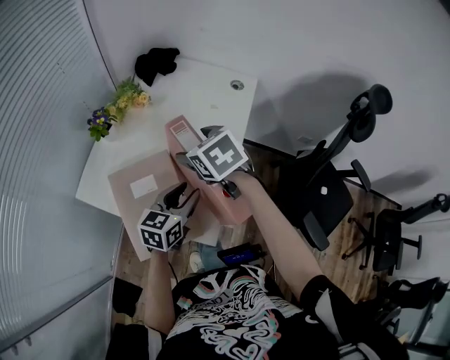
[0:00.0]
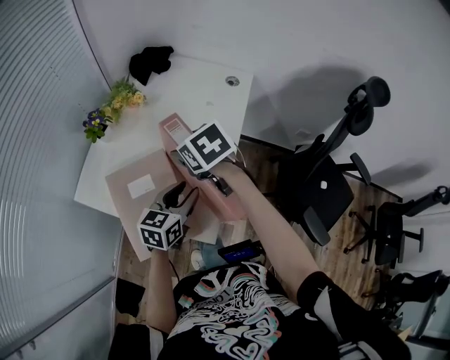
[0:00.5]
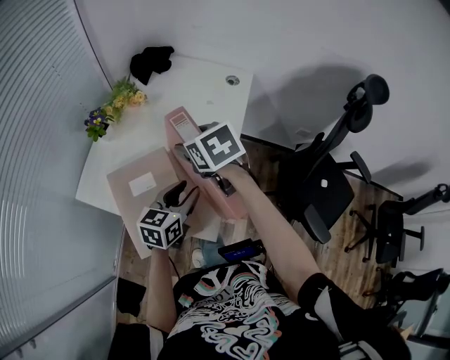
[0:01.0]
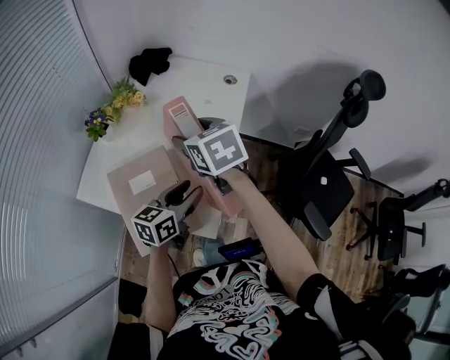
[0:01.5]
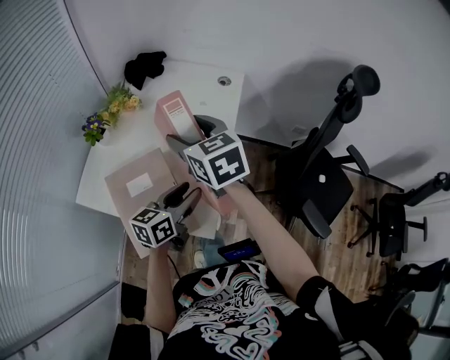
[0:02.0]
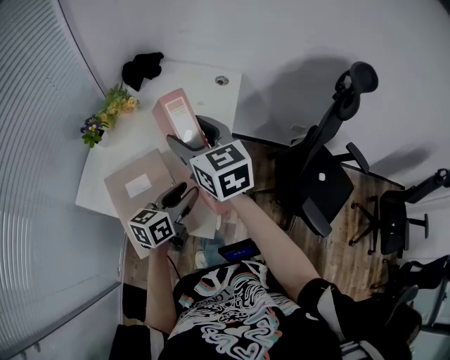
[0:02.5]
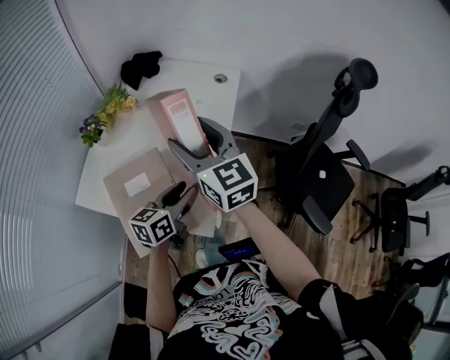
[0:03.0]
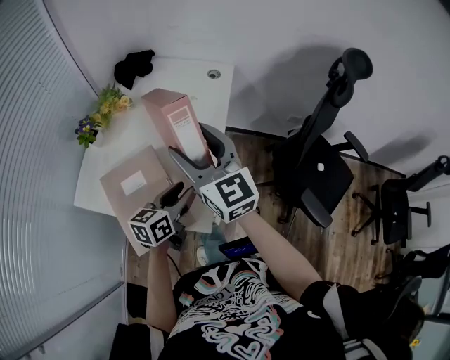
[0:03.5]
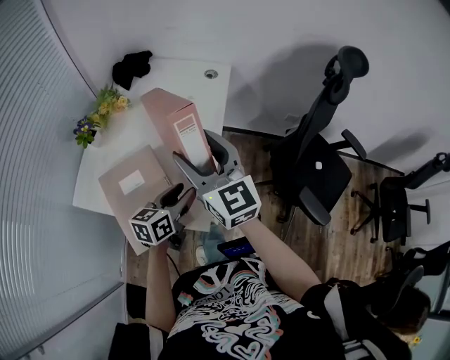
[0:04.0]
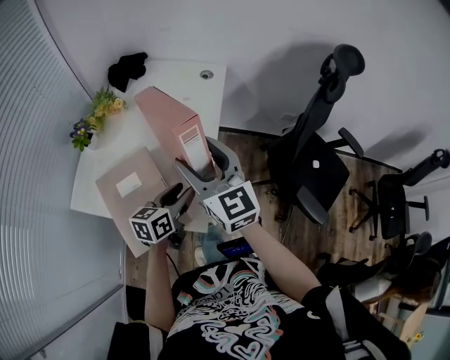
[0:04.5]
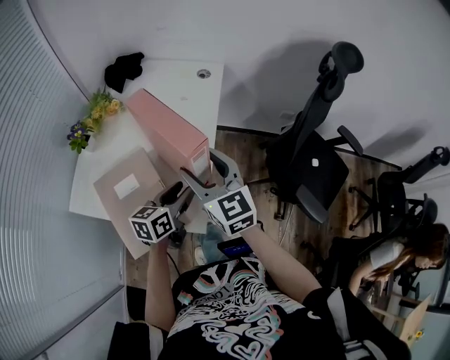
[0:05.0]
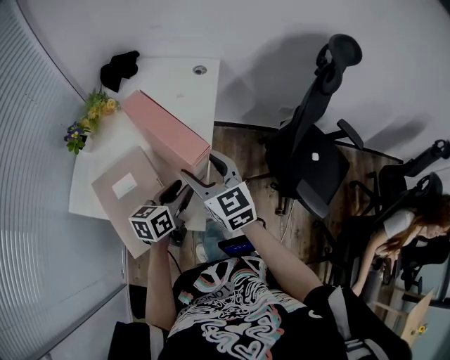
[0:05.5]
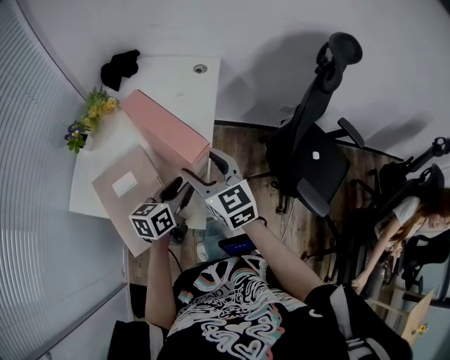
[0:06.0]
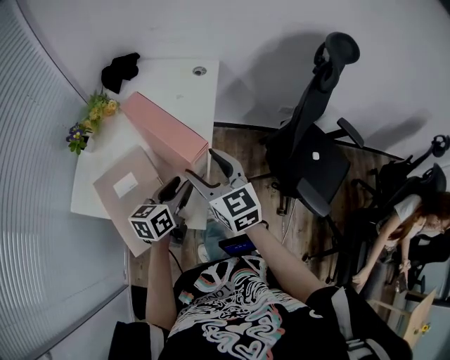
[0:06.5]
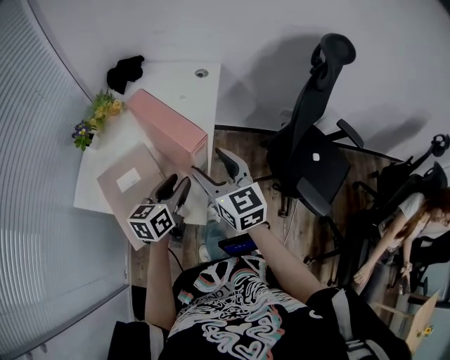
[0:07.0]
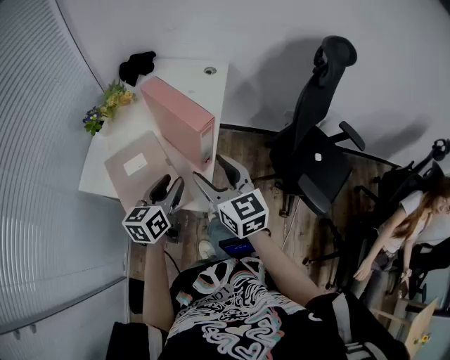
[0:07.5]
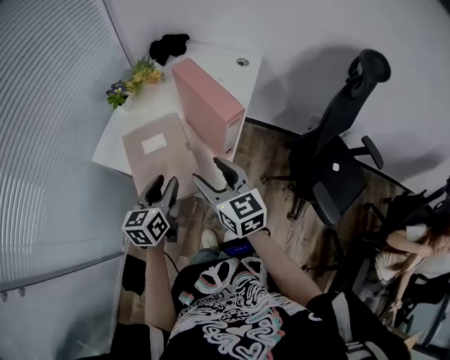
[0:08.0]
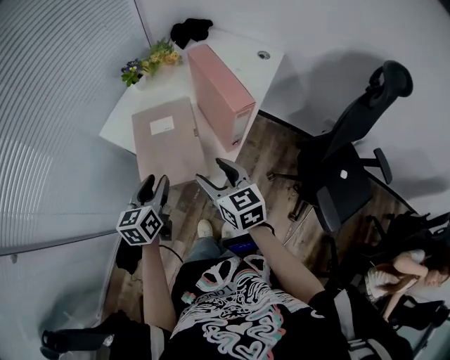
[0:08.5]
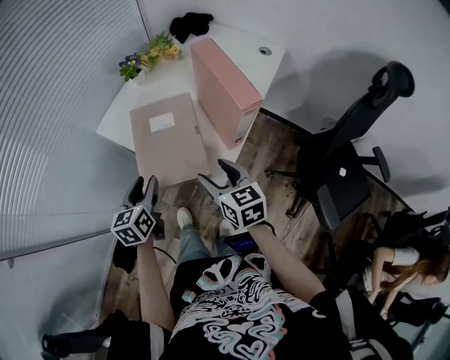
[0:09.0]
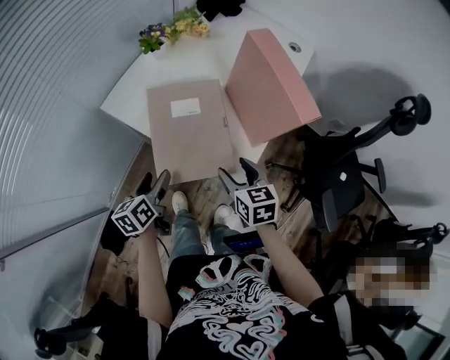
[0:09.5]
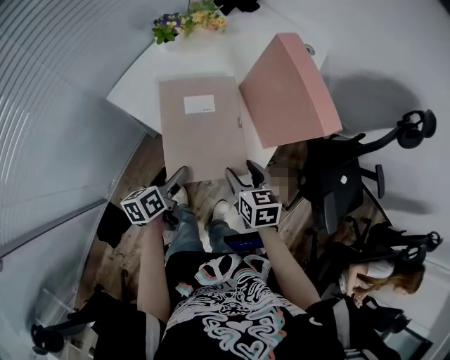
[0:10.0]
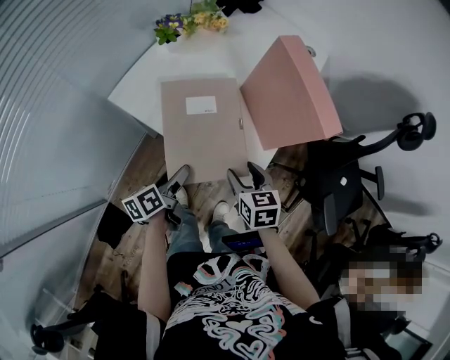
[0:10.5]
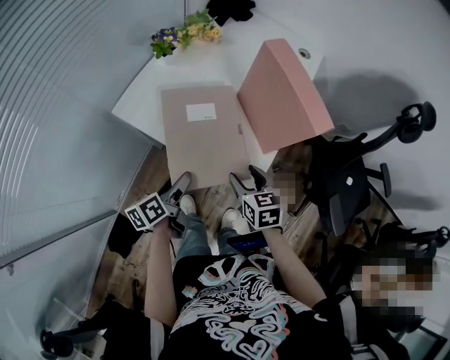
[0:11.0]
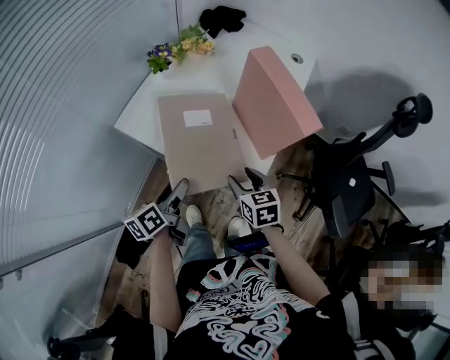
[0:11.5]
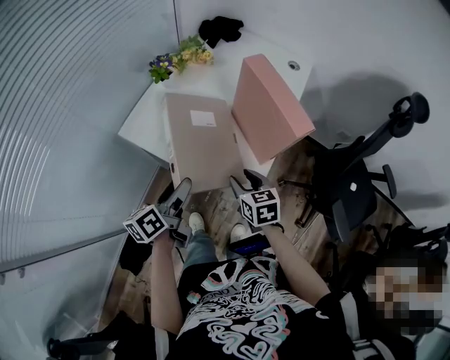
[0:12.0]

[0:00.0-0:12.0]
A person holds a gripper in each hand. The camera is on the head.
0:00.0 to 0:02.0: The right gripper moves upward, about 5 cm, and rotates about 20 degrees.
0:02.0 to 0:04.0: The right gripper heads backward and to the right, covering approximately 10 cm, and rotates approximately 30 degrees.
0:04.0 to 0:06.0: The right gripper moves downward, about 10 cm.
0:06.0 to 0:08.0: The right gripper heads backward, covering roughly 10 cm, while the left gripper is displaced to the left and backward by roughly 15 cm, and rotates approximately 30 degrees.
0:08.0 to 0:10.0: The left gripper moves downward and to the left, about 20 cm, swivels approximately 40 degrees, and opens. The right gripper shifts about 15 cm downward, and swivels approximately 30 degrees.
0:10.0 to 0:12.0: The left gripper shifts roughly 10 cm upward.

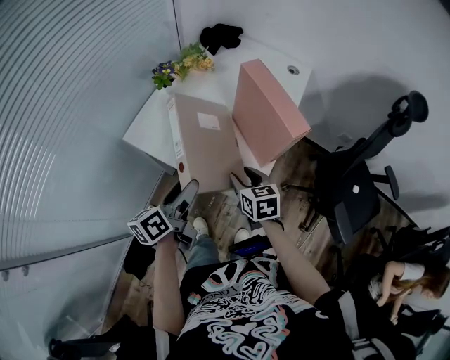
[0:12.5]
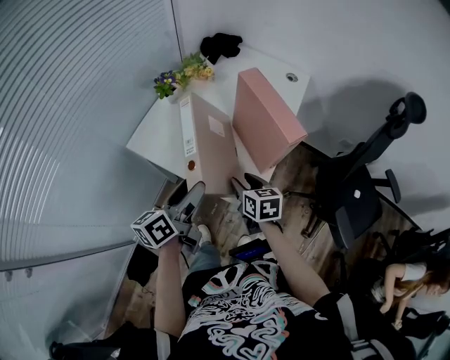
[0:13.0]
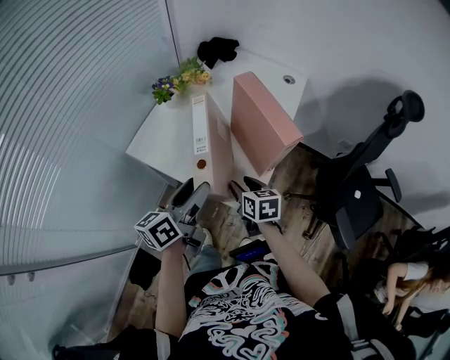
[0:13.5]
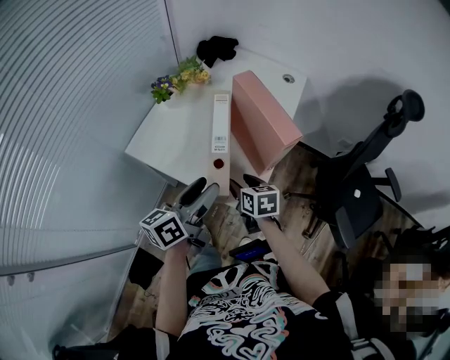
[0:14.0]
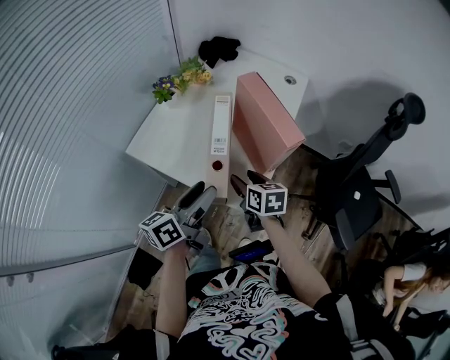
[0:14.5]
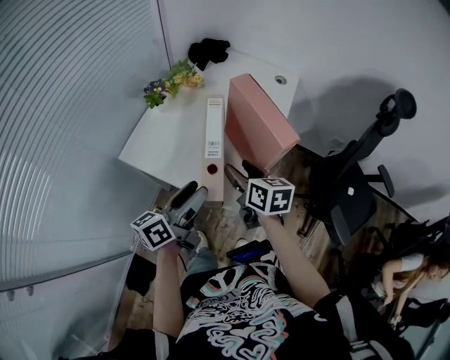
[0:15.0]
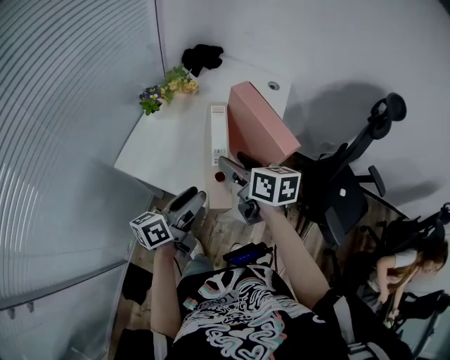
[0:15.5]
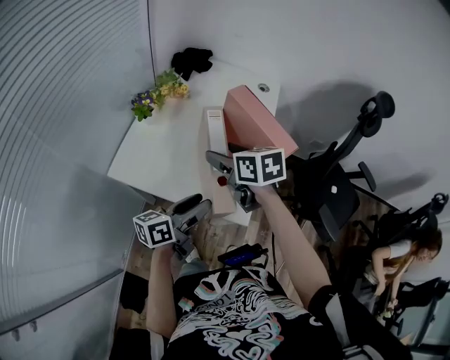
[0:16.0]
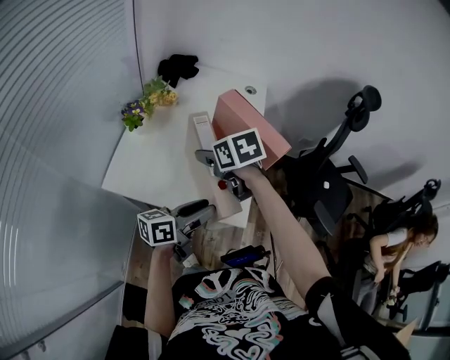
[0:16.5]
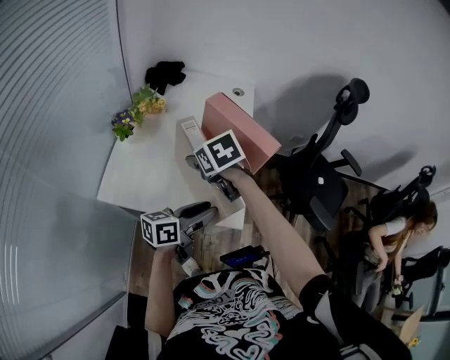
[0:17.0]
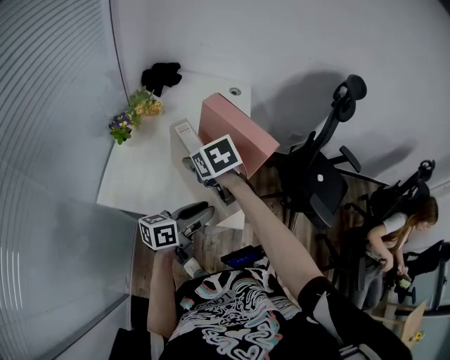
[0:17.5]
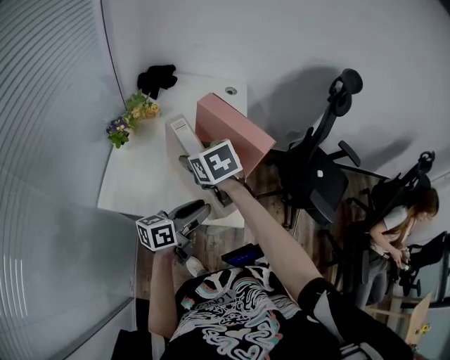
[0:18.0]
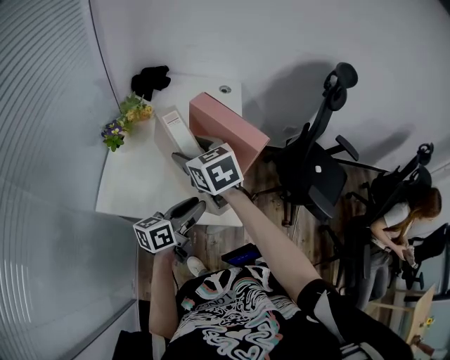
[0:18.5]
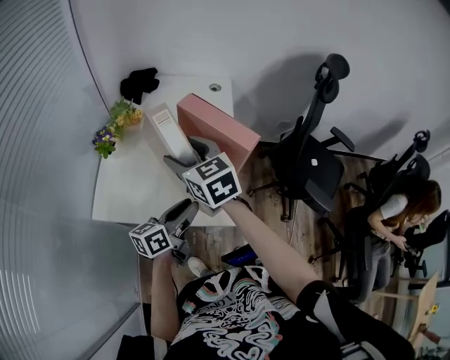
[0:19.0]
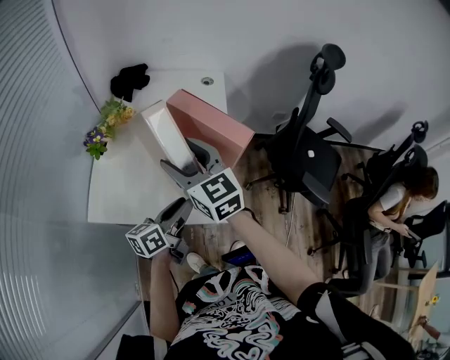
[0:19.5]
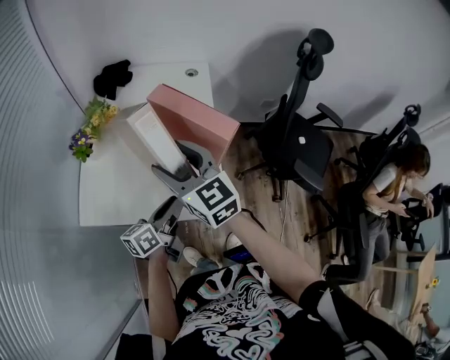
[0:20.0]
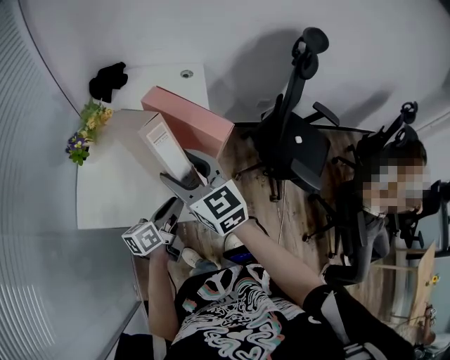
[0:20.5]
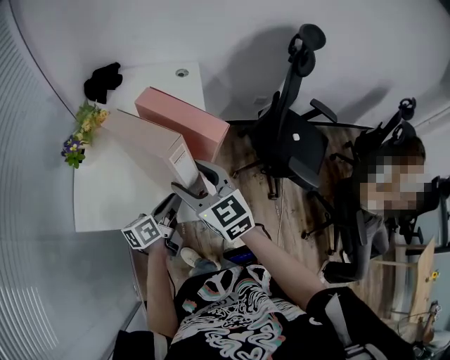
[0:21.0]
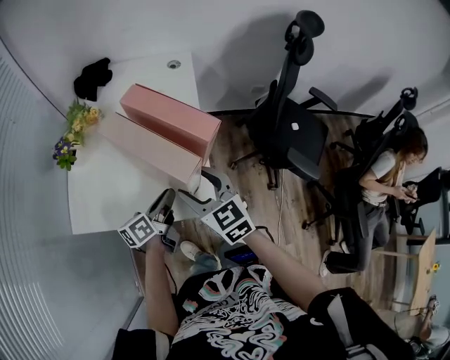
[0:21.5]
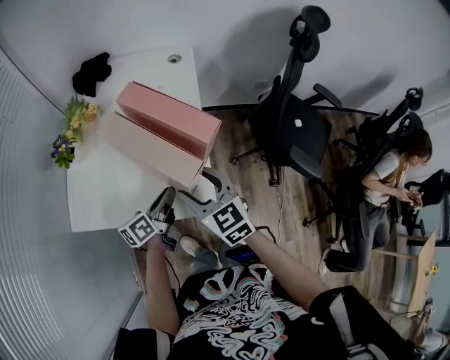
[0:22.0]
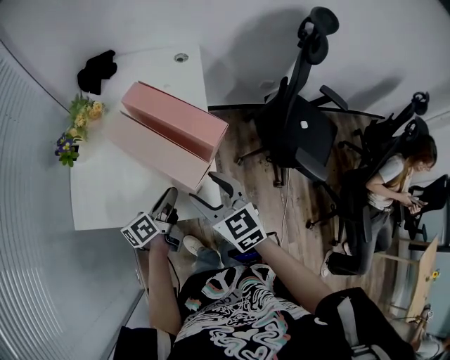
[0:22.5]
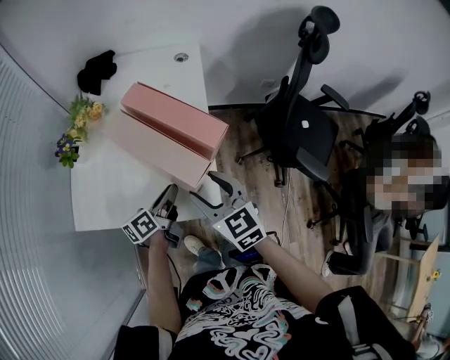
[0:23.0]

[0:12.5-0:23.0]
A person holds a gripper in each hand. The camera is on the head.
0:12.5 to 0:14.5: The left gripper is displaced to the right by about 5 cm.
0:14.5 to 0:16.5: The right gripper heads upward, forward and to the left, covering roughly 15 cm. Meanwhile the left gripper swivels about 30 degrees.
0:16.5 to 0:19.0: The right gripper shifts some 5 cm upward, and rotates about 30 degrees.
0:19.0 to 0:21.0: The right gripper travels to the right and backward by about 10 cm, while the left gripper travels downward by approximately 5 cm.
0:21.0 to 0:23.0: The right gripper is displaced downward and to the right by some 10 cm.

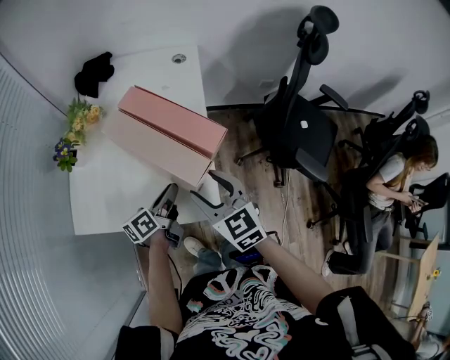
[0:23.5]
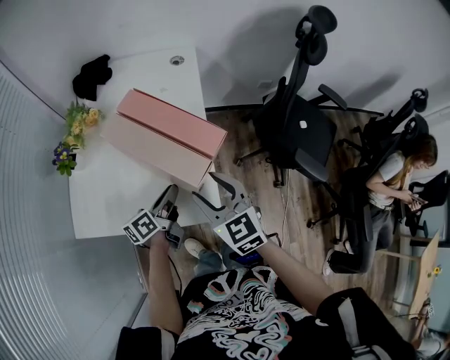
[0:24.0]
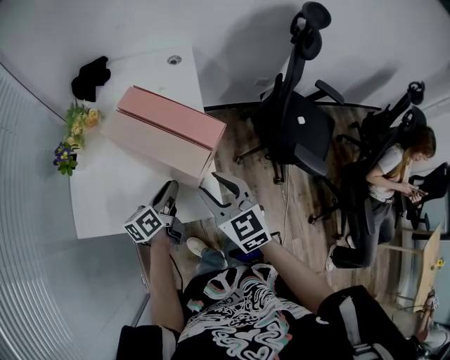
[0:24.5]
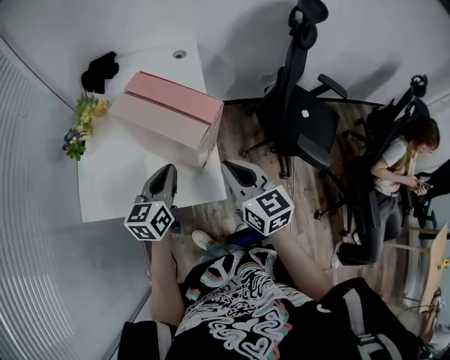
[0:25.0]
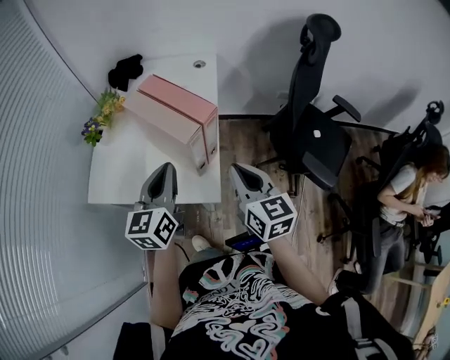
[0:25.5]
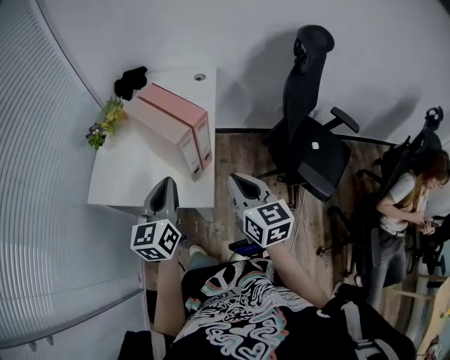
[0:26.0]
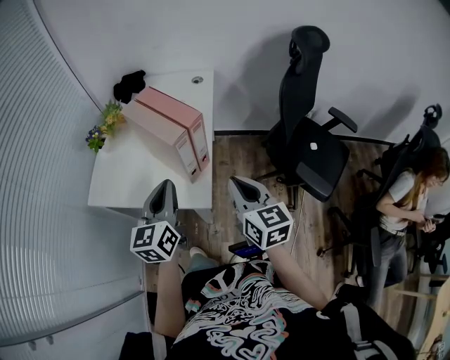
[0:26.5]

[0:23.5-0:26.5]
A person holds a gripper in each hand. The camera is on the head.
0:23.5 to 0:25.0: The right gripper travels to the right by some 5 cm, and closes its fingers. The left gripper is displaced upward by some 10 cm, and twists some 40 degrees clockwise, seen from behind.
0:25.0 to 0:26.5: The left gripper shifts roughly 15 cm backward and upward, and rotates about 20 degrees; the right gripper is displaced to the right and backward by about 10 cm.

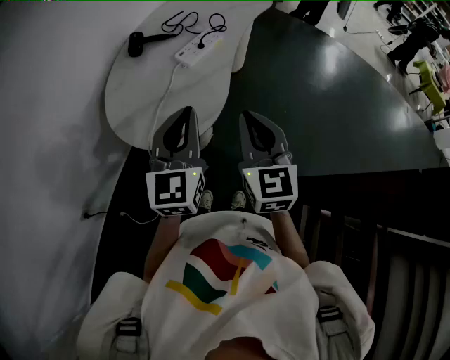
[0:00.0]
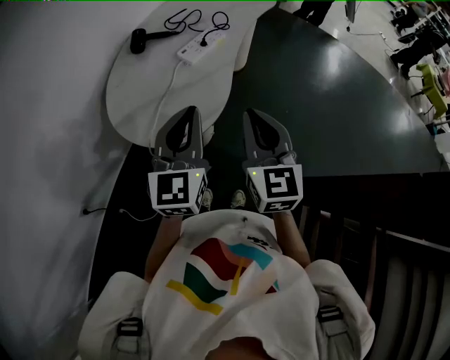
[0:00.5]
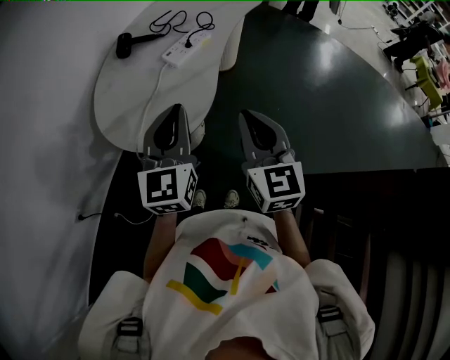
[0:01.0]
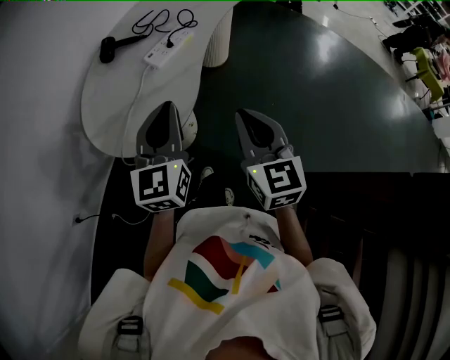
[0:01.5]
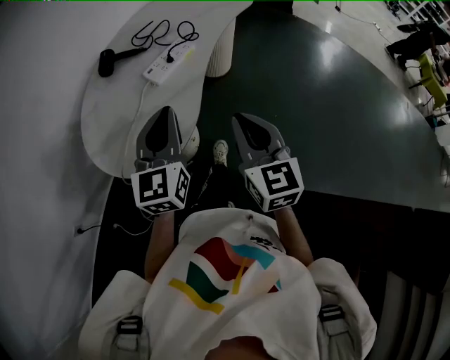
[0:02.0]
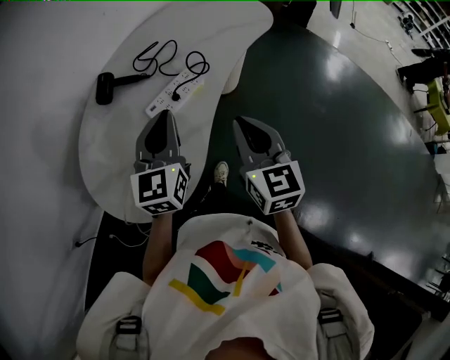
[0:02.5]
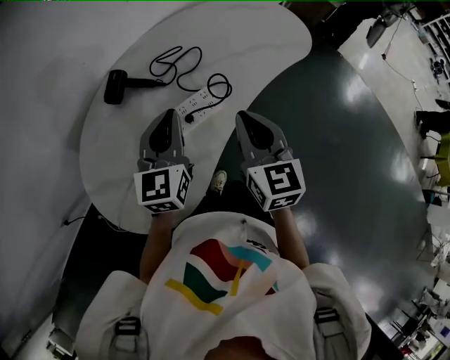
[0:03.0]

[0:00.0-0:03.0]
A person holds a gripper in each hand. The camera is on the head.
0:00.0 to 0:01.5: Both grippers travel together to the right, approximately 10 cm.
0:01.5 to 0:03.0: Both grippers travel together forward, roughly 40 cm.
